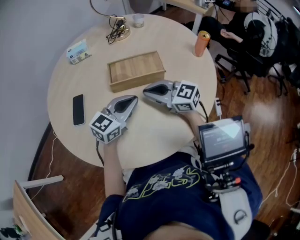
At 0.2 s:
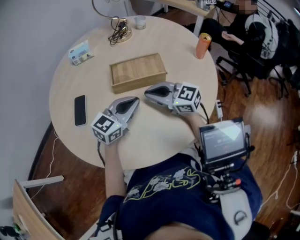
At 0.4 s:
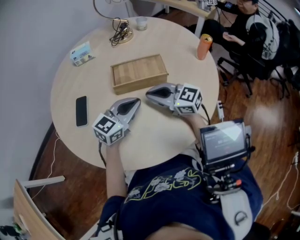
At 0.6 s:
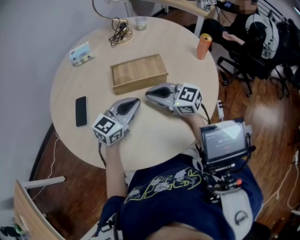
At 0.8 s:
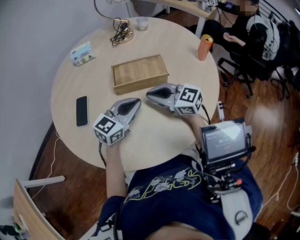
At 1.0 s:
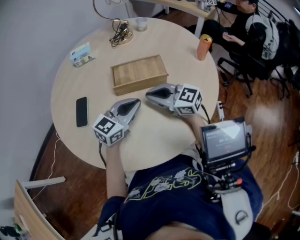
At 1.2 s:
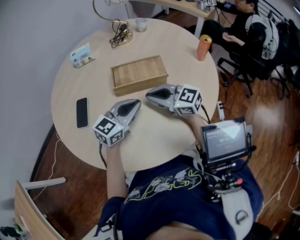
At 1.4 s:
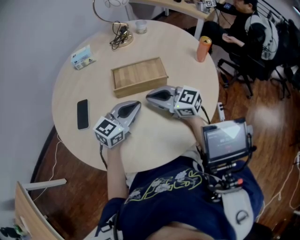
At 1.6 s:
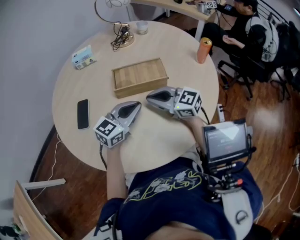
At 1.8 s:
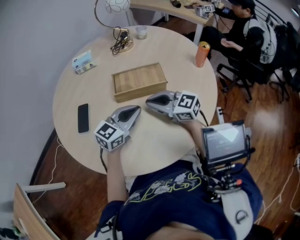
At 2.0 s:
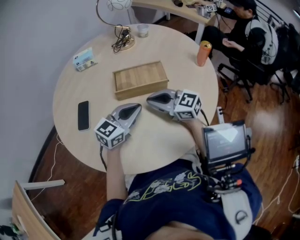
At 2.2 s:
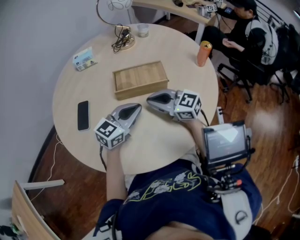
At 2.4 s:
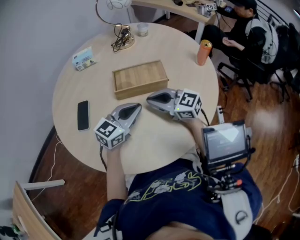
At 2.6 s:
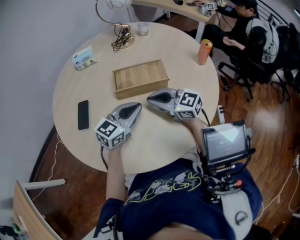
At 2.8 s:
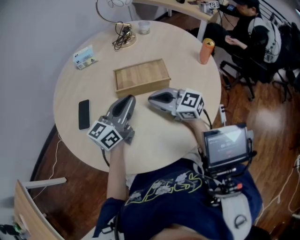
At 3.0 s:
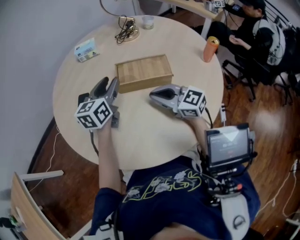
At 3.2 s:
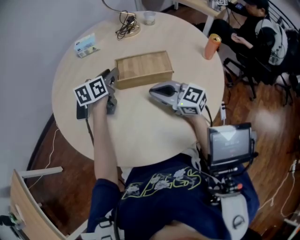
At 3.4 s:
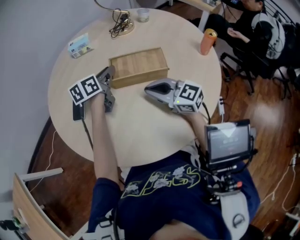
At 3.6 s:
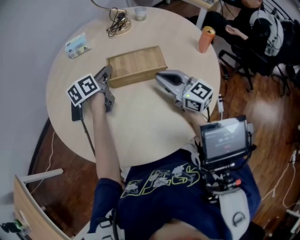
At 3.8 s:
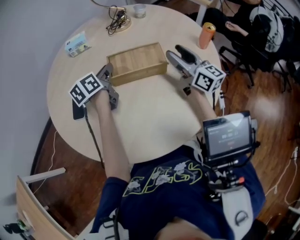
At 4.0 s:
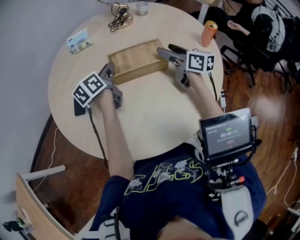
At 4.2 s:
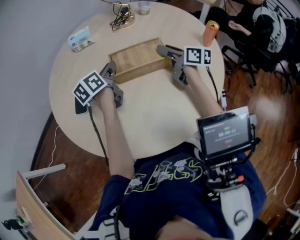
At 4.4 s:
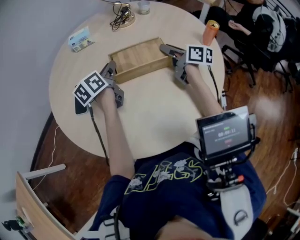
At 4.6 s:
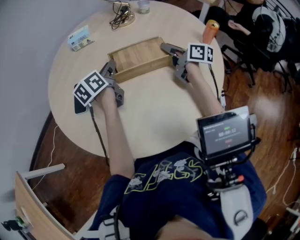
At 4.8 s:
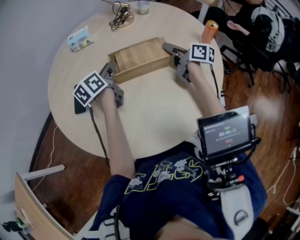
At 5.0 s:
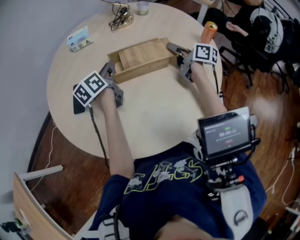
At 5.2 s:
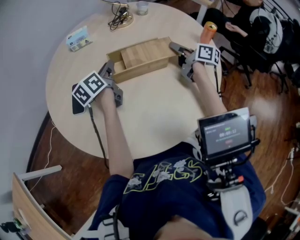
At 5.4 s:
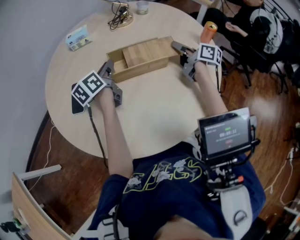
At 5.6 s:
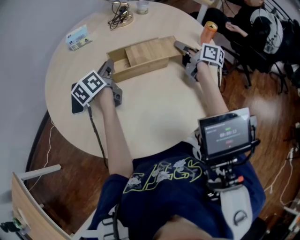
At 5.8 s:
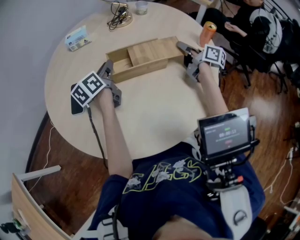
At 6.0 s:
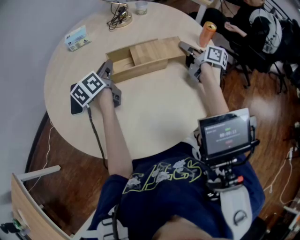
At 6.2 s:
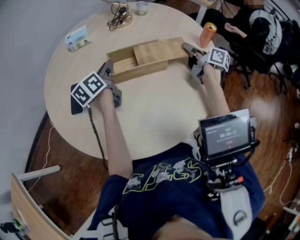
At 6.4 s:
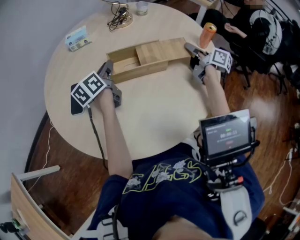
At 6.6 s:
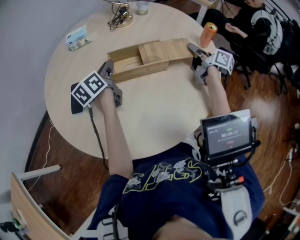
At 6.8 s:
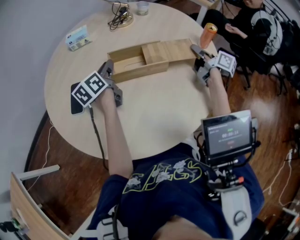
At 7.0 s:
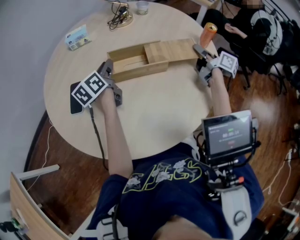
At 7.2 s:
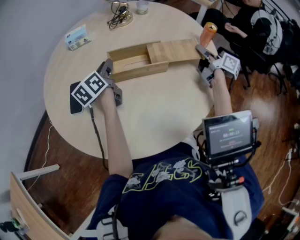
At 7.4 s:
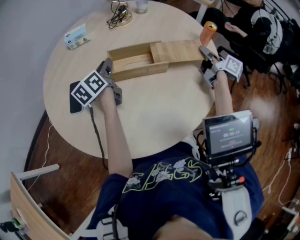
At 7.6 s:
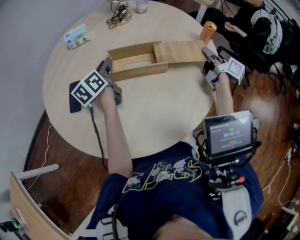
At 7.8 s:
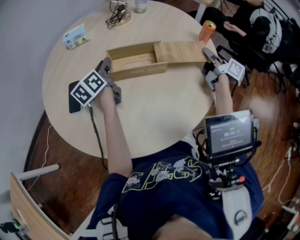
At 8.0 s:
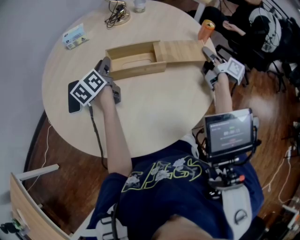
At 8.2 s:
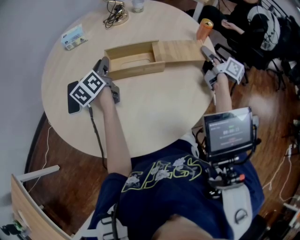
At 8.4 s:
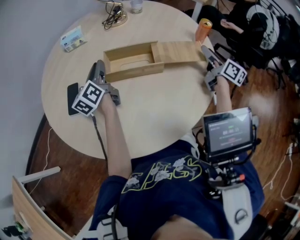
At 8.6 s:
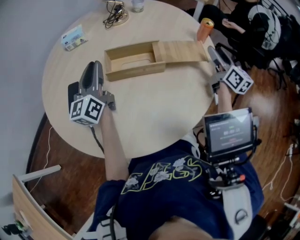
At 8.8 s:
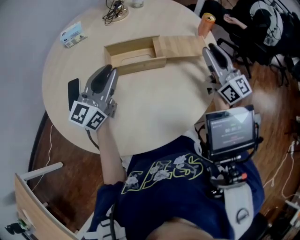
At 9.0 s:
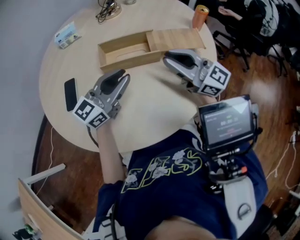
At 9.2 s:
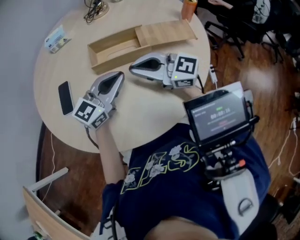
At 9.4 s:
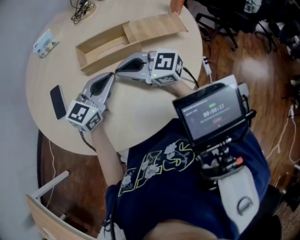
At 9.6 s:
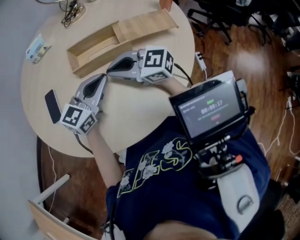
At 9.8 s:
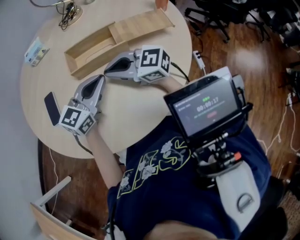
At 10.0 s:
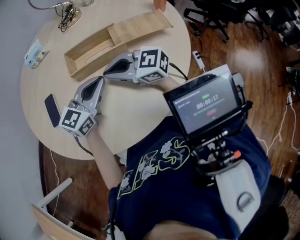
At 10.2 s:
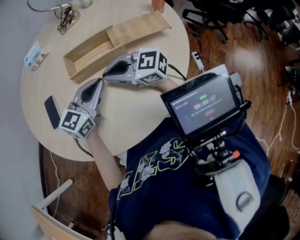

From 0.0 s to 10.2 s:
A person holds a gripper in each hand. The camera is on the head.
From 0.0 s to 1.4 s: Both grippers stay put.
From 1.4 s to 3.0 s: The left gripper shifts about 15 cm forward, to the left and upward, changes its angle by about 40 degrees, and opens its fingers.
From 3.0 s to 4.4 s: The left gripper shifts by roughly 5 cm, and changes its angle by approximately 30 degrees, while the right gripper goes approximately 20 cm to the right and forward, rotates around the line of its fingers by roughly 40 degrees, clockwise from behind, and opens.
From 4.4 s to 5.8 s: The right gripper travels to the right by some 10 cm.
From 5.8 s to 7.2 s: The right gripper goes about 10 cm to the right.
From 7.2 s to 8.8 s: The right gripper travels backward and upward by approximately 15 cm, rotates around the line of its fingers by some 50 degrees, counterclockwise from behind, and opens and closes again, while the left gripper is displaced backward, upward and to the right by some 15 cm, and rotates some 50 degrees.
From 8.8 s to 10.2 s: The right gripper heads to the left, covering some 25 cm, turns by some 50 degrees, and closes its fingers. The left gripper is displaced downward and to the right by some 10 cm, and swivels roughly 20 degrees.

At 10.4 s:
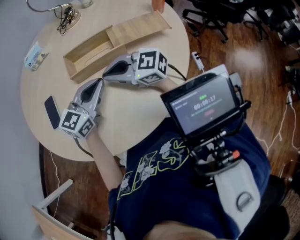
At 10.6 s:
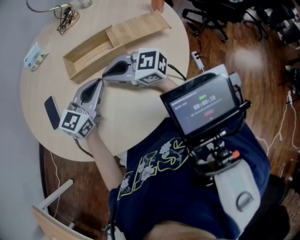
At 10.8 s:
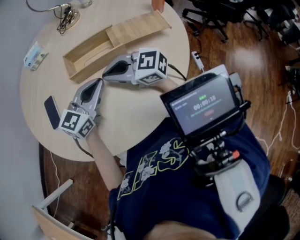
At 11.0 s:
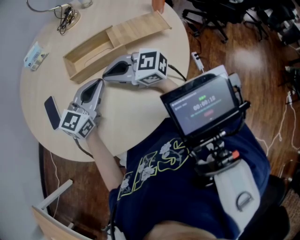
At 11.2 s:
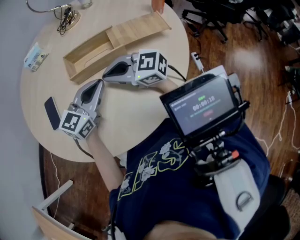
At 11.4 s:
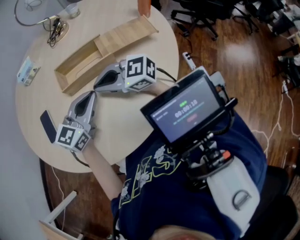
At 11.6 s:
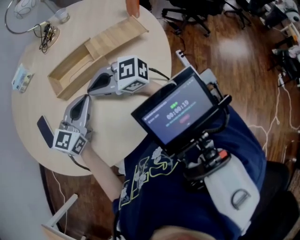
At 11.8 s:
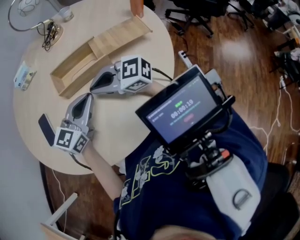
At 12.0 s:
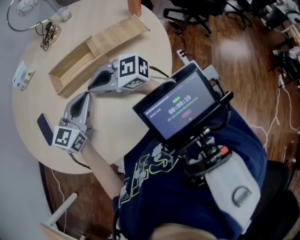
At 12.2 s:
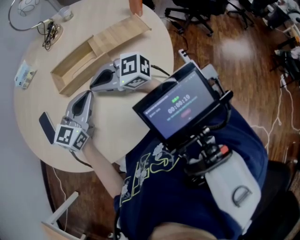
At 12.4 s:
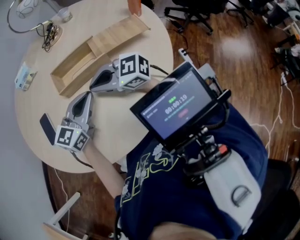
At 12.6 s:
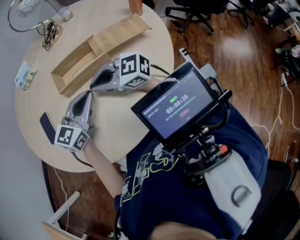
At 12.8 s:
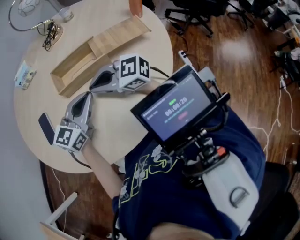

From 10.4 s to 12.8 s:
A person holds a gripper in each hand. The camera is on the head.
From 10.4 s to 12.8 s: Neither gripper changes place.

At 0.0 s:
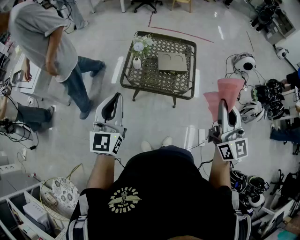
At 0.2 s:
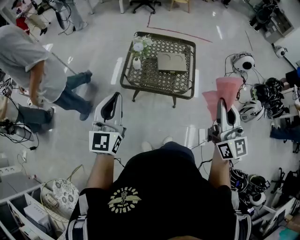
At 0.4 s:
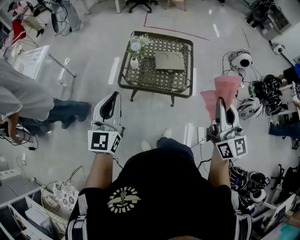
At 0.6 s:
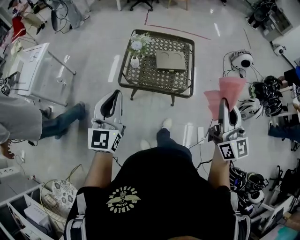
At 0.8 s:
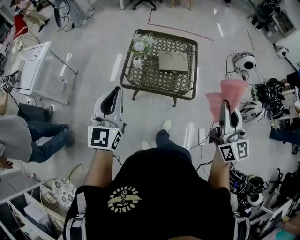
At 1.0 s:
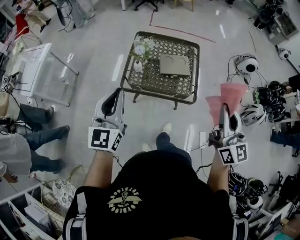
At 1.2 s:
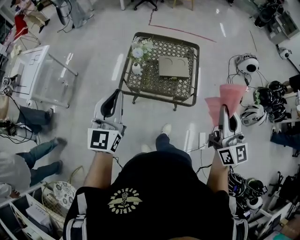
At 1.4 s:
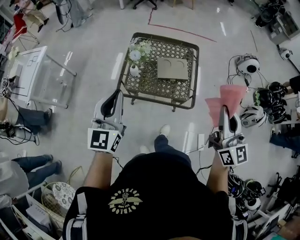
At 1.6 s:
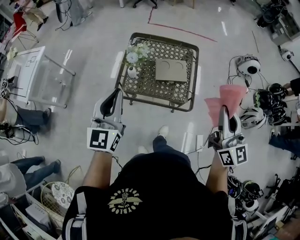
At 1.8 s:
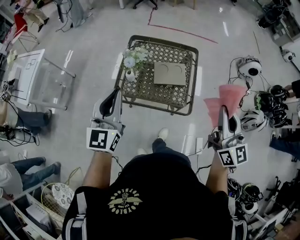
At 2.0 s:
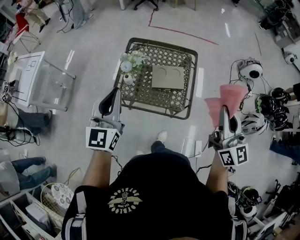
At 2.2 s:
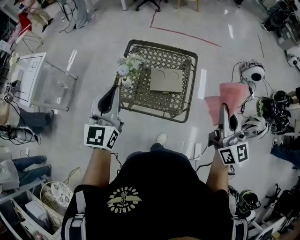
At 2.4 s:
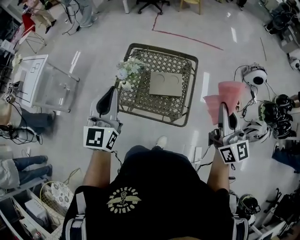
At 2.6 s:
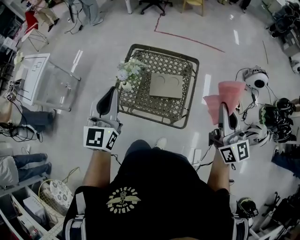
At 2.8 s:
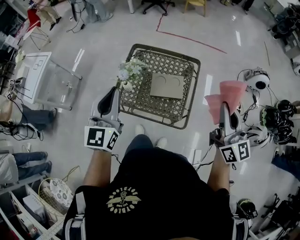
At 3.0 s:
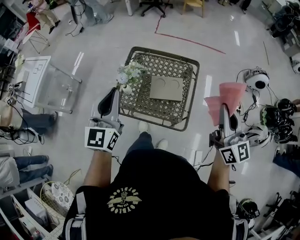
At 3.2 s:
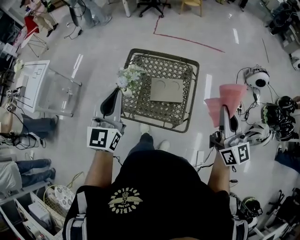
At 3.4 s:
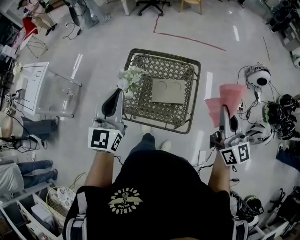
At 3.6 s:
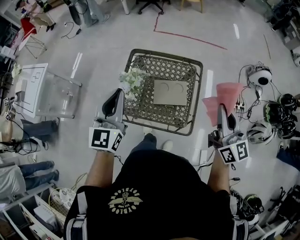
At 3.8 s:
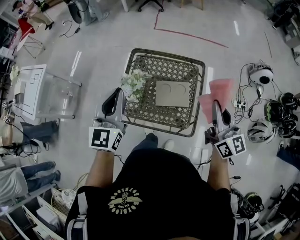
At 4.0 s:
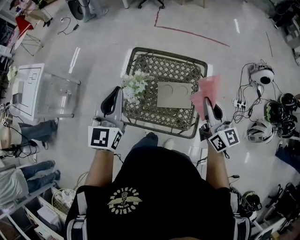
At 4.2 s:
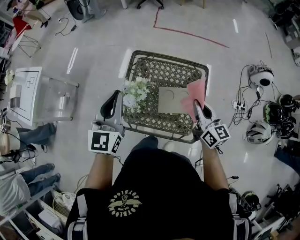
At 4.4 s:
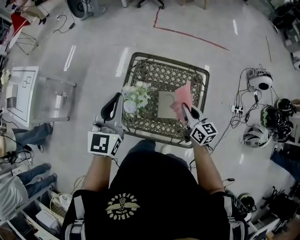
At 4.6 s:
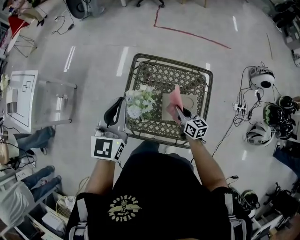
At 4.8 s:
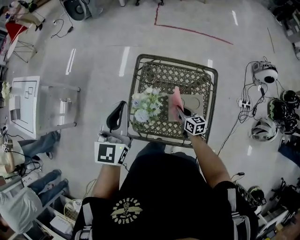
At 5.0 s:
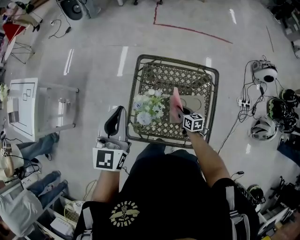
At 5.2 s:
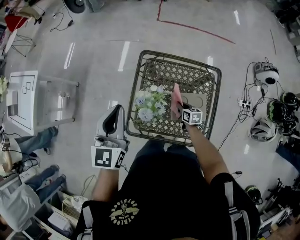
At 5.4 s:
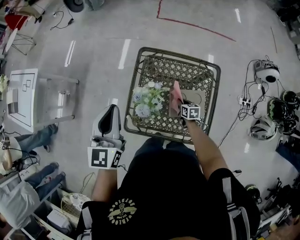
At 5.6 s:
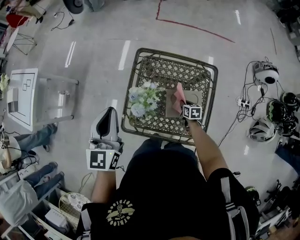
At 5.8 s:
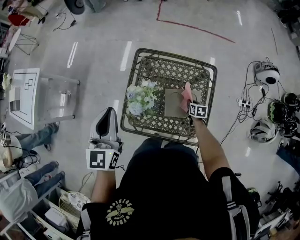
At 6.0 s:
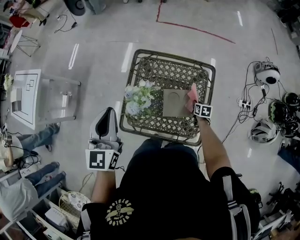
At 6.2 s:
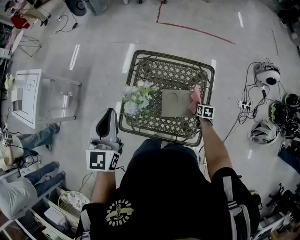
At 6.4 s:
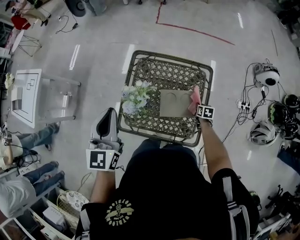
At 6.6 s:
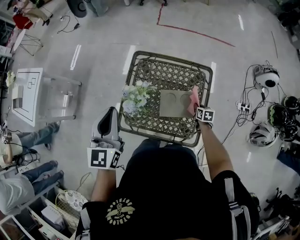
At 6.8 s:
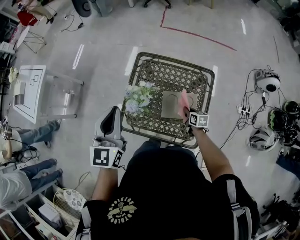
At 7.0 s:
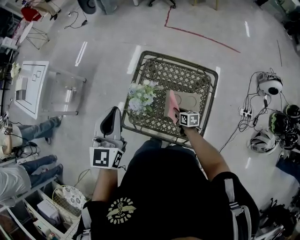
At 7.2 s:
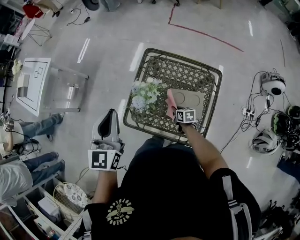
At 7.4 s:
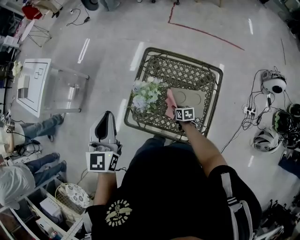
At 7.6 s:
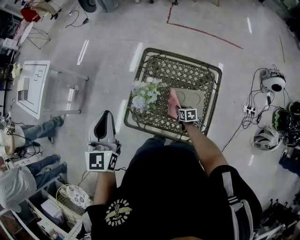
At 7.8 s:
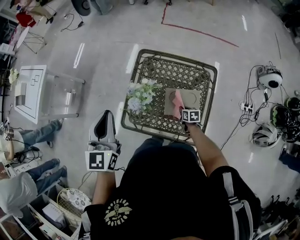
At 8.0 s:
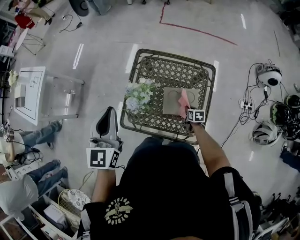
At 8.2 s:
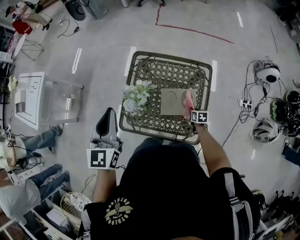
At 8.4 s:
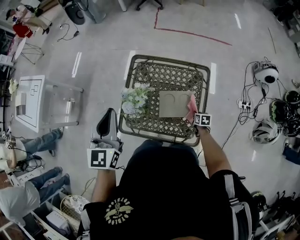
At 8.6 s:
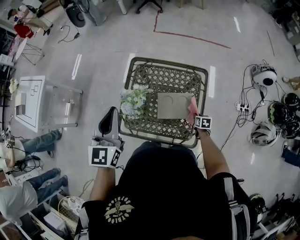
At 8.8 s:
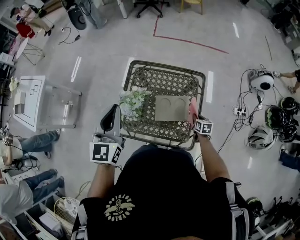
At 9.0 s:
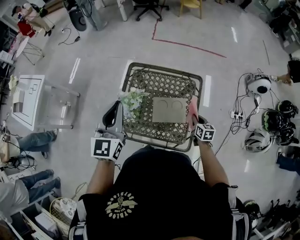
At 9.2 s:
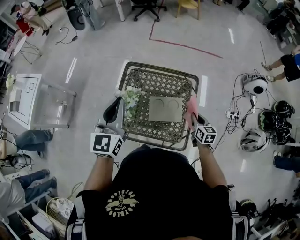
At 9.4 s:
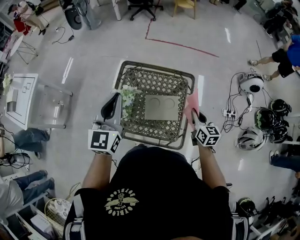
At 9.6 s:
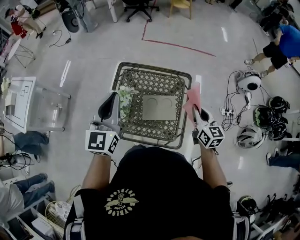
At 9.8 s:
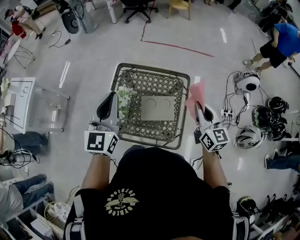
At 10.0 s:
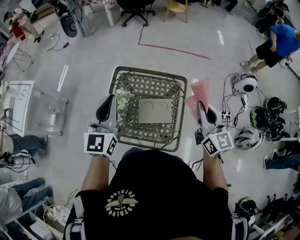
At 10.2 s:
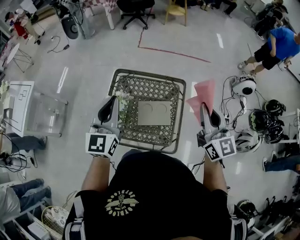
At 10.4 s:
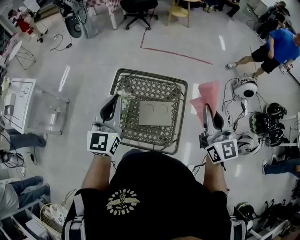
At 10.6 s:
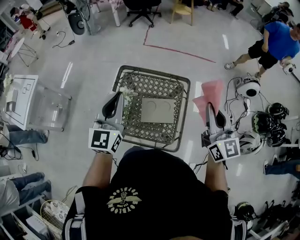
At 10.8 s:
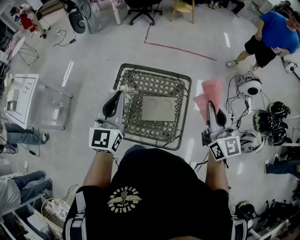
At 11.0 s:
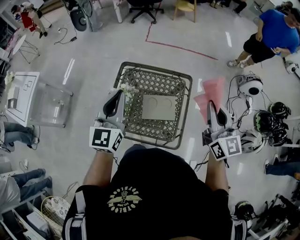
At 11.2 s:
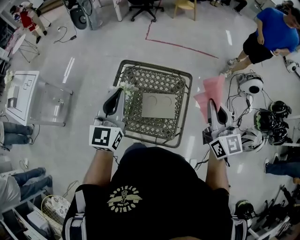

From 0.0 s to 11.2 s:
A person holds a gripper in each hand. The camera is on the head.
From 0.0 s to 1.6 s: The two grippers go approximately 15 cm forward.
From 1.6 s to 3.2 s: Both grippers move forward and to the right, roughly 15 cm.
From 3.2 s to 4.8 s: The right gripper moves downward, forward and to the left, approximately 50 cm, and tilts its fingers approximately 40 degrees downward, while the left gripper shifts about 25 cm forward and to the left.
From 4.8 s to 6.4 s: The right gripper goes some 25 cm to the right and downward, and tips its fingers downward by approximately 30 degrees, while the left gripper heads backward, covering about 5 cm.
From 6.4 s to 8.0 s: The right gripper is displaced to the left by approximately 10 cm.
From 8.0 s to 9.6 s: The left gripper moves to the right, some 10 cm, while the right gripper heads upward, covering roughly 35 cm, and tilts its fingers roughly 40 degrees upward.
From 9.6 s to 11.2 s: The right gripper moves upward, some 15 cm.
